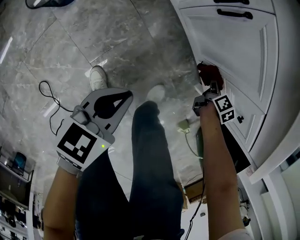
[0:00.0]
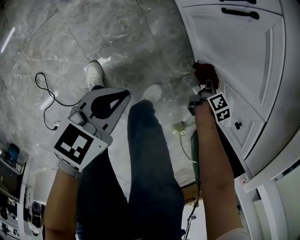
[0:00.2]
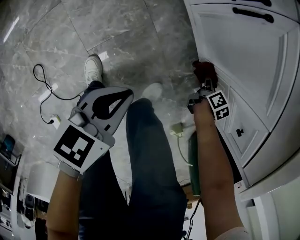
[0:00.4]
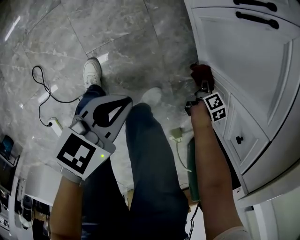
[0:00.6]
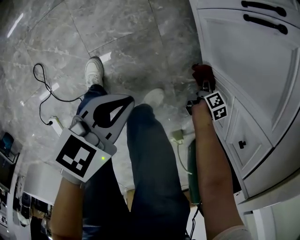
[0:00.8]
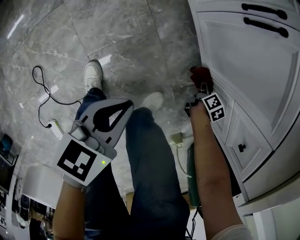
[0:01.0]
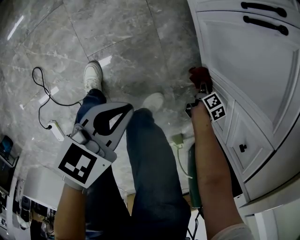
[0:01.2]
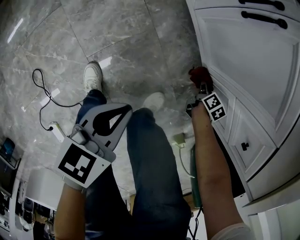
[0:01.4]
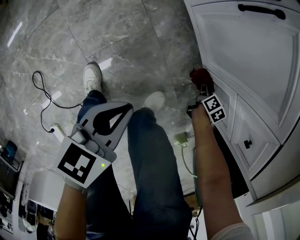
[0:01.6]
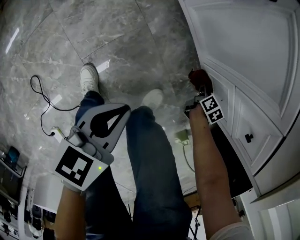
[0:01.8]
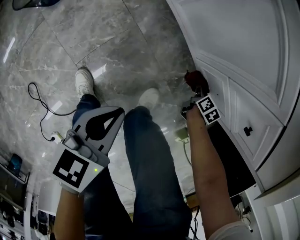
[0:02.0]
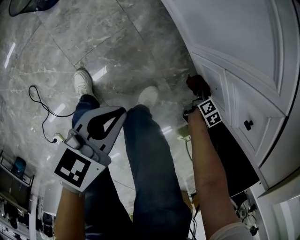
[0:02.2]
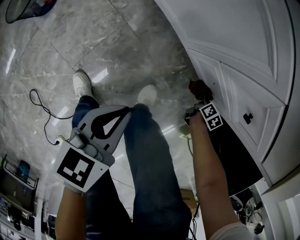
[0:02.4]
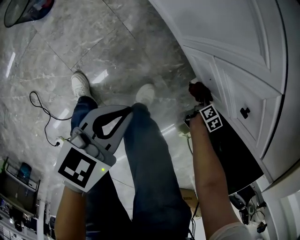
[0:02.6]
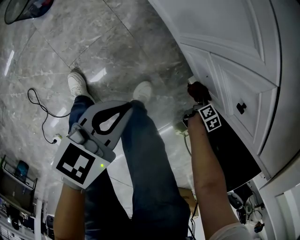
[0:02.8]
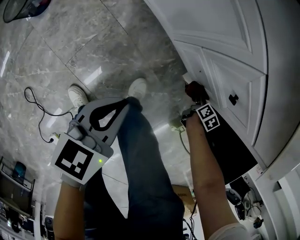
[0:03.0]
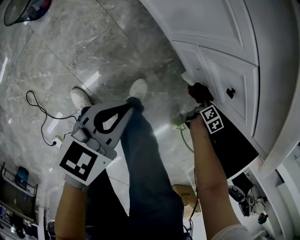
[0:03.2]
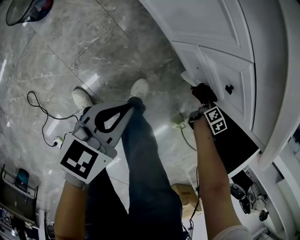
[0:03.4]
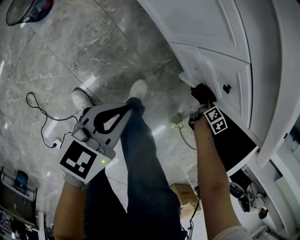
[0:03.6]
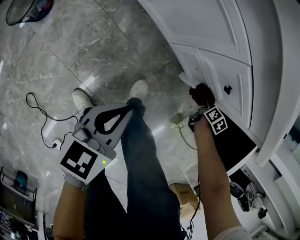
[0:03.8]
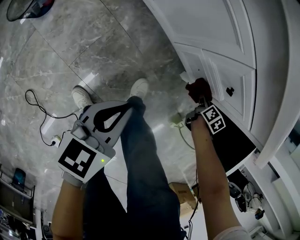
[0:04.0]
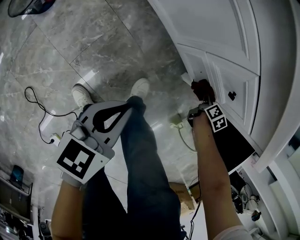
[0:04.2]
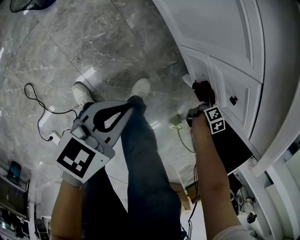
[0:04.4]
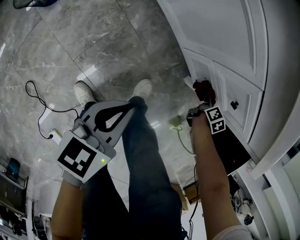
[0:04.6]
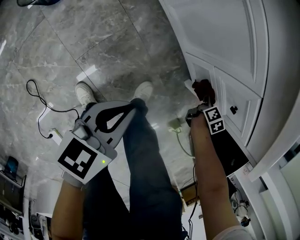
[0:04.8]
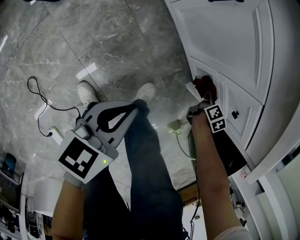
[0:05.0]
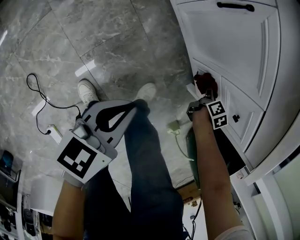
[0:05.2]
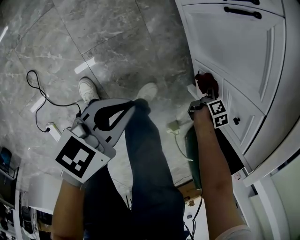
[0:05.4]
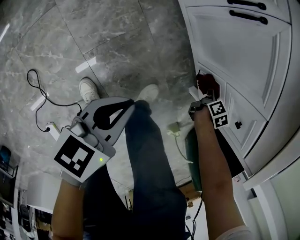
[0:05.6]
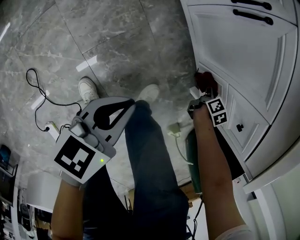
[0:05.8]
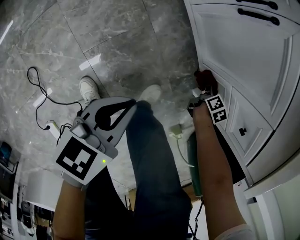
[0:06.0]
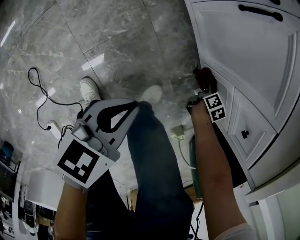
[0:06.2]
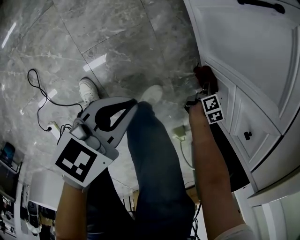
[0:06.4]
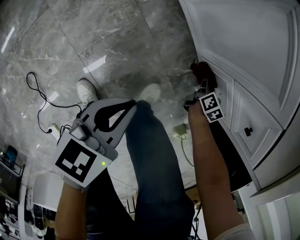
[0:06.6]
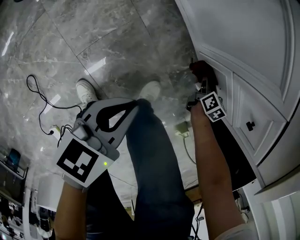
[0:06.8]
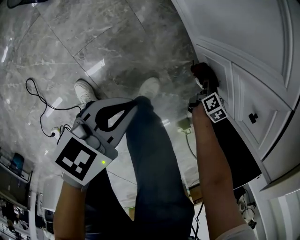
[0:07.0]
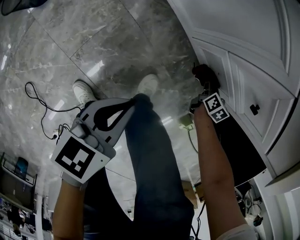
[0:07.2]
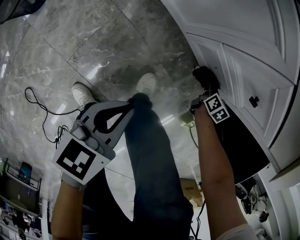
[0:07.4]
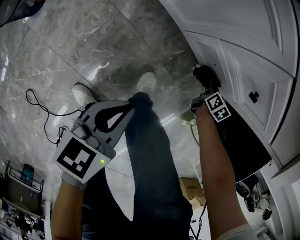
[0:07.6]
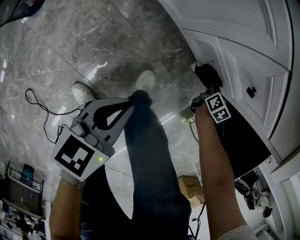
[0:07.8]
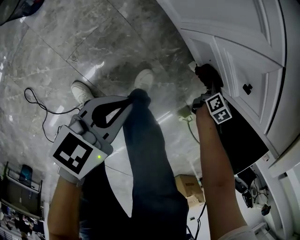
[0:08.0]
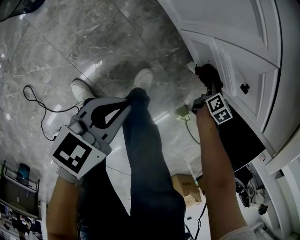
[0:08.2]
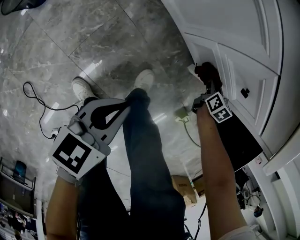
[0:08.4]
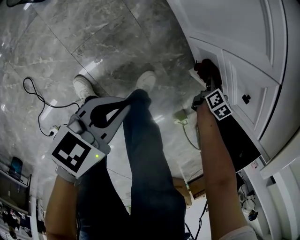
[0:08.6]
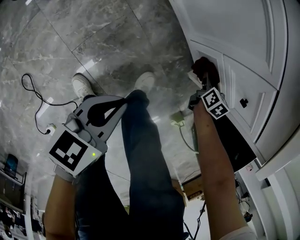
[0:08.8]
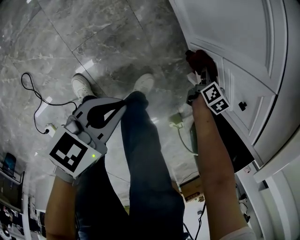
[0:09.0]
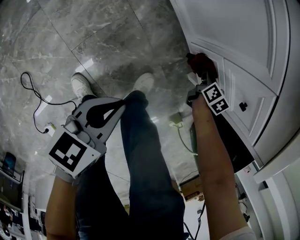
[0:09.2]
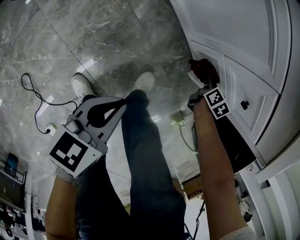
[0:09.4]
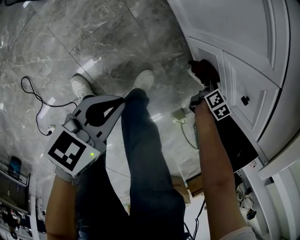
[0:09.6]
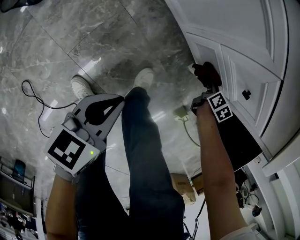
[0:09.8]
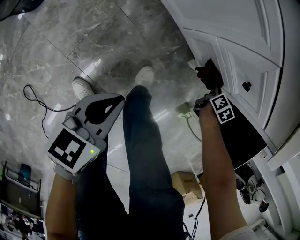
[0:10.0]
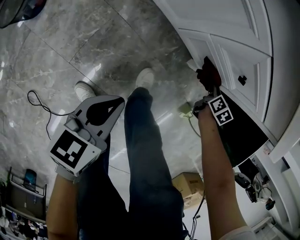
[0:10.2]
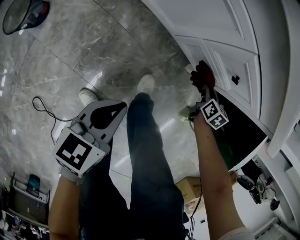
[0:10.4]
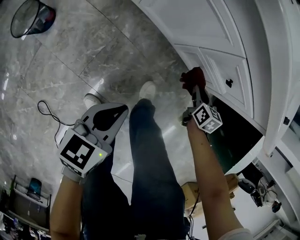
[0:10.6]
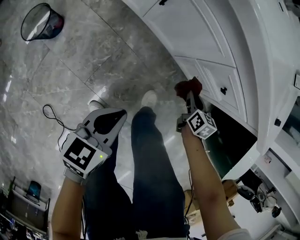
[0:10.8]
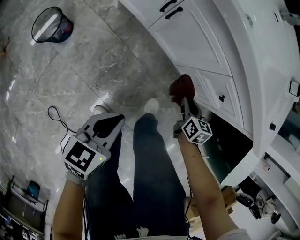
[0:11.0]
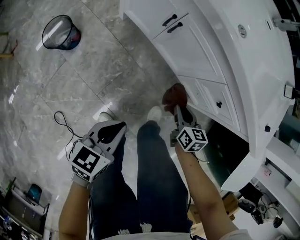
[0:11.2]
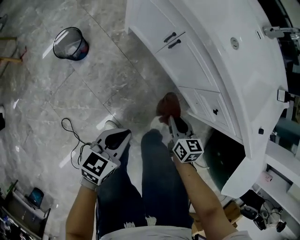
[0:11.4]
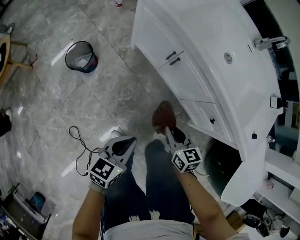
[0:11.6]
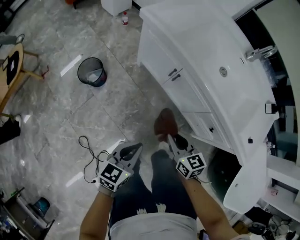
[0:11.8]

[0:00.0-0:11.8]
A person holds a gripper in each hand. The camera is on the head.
0:00.0 to 0:01.4: The right gripper shifts some 15 cm downward. Meanwhile the left gripper travels downward and to the right by roughly 10 cm.
0:01.4 to 0:03.0: The left gripper shifts roughly 10 cm to the right, while the right gripper moves to the right, approximately 25 cm.
0:03.0 to 0:04.4: The left gripper ends up approximately 5 cm from where it was; the right gripper shifts about 10 cm upward and to the left.
0:04.4 to 0:06.0: The right gripper goes some 20 cm to the left and downward. The left gripper shifts approximately 5 cm to the left.
0:06.0 to 0:07.4: Both grippers travel together to the right, approximately 15 cm.
0:07.4 to 0:08.8: The left gripper shifts by roughly 5 cm. Meanwhile the right gripper travels to the left and upward by about 15 cm.
0:08.8 to 0:10.4: The right gripper moves left and right over some 20 cm, changing direction 2 times.
0:10.4 to 0:11.8: The right gripper shifts by some 50 cm, and rotates approximately 50 degrees; the left gripper goes approximately 25 cm upward, and turns by roughly 20 degrees.

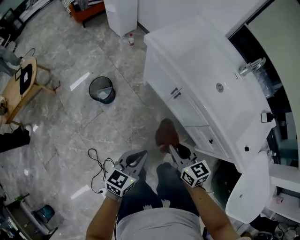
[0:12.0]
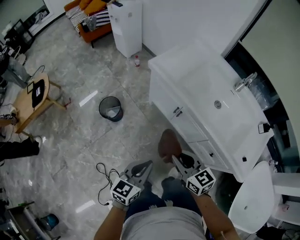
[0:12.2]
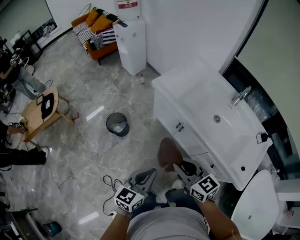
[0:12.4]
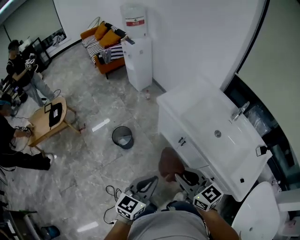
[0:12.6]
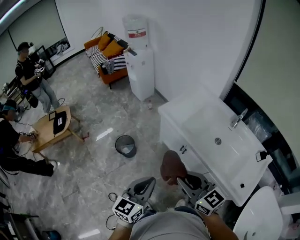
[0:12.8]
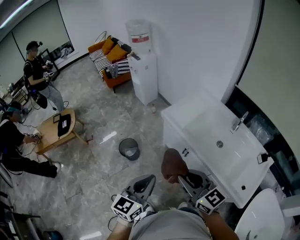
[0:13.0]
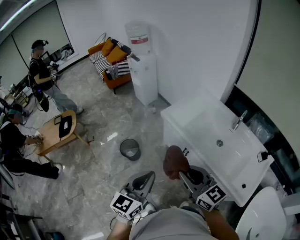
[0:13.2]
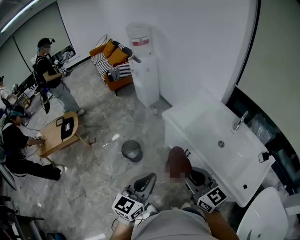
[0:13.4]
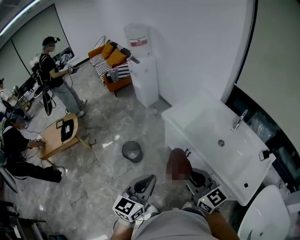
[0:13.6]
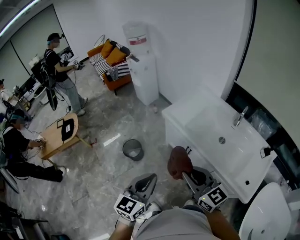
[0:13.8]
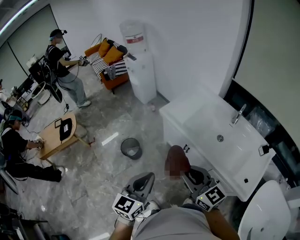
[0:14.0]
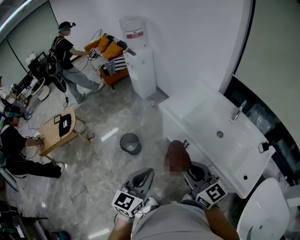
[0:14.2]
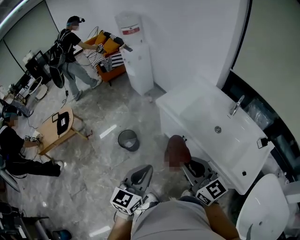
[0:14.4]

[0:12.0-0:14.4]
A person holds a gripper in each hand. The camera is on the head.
0:12.0 to 0:13.2: The grippers both shift upward by some 30 cm. The left gripper swivels roughly 30 degrees. Meanwhile the right gripper turns by roughly 30 degrees.
0:13.2 to 0:14.4: There are only small adjustments of the grippers.

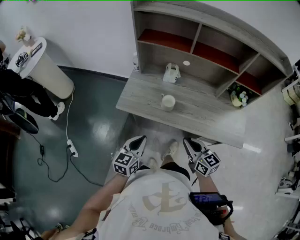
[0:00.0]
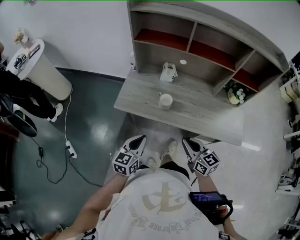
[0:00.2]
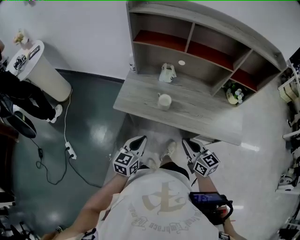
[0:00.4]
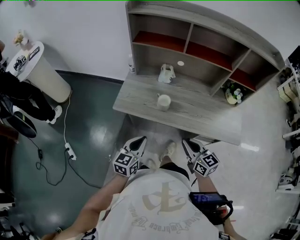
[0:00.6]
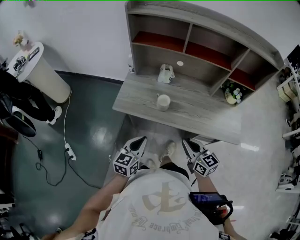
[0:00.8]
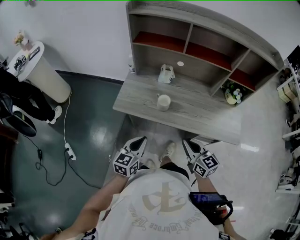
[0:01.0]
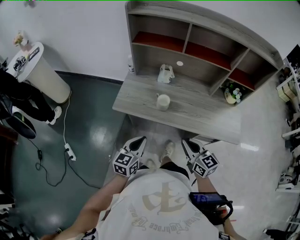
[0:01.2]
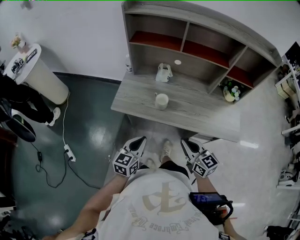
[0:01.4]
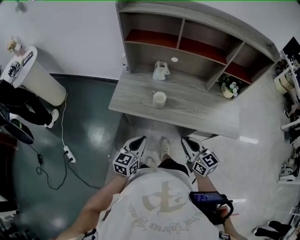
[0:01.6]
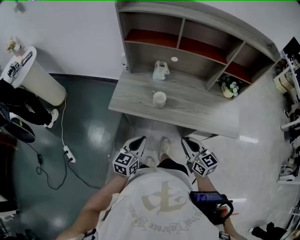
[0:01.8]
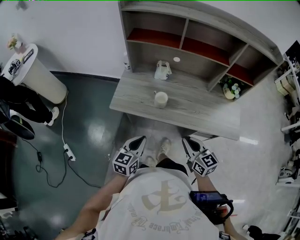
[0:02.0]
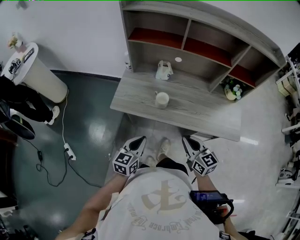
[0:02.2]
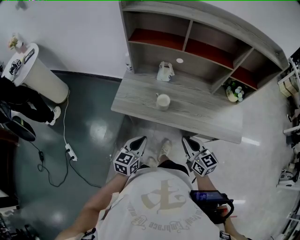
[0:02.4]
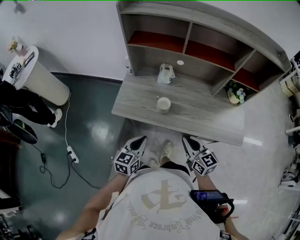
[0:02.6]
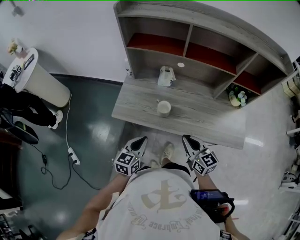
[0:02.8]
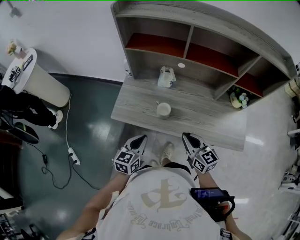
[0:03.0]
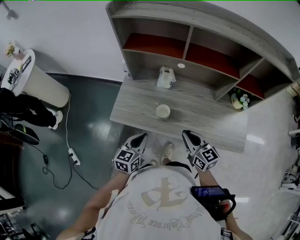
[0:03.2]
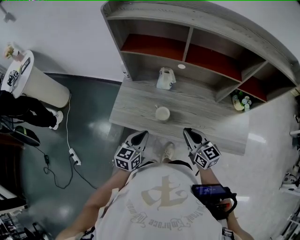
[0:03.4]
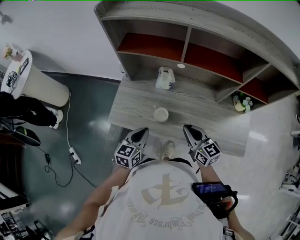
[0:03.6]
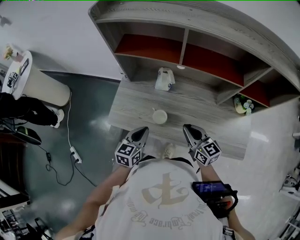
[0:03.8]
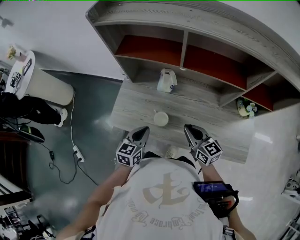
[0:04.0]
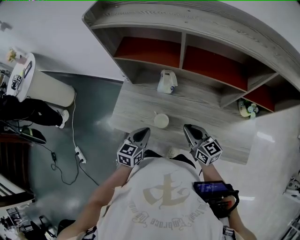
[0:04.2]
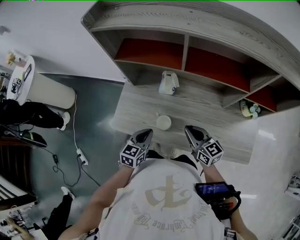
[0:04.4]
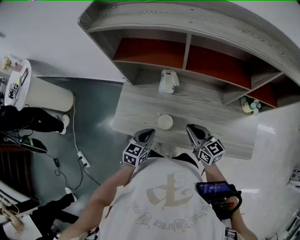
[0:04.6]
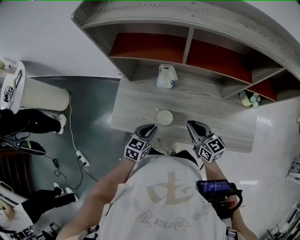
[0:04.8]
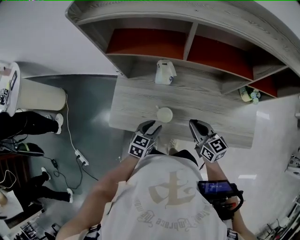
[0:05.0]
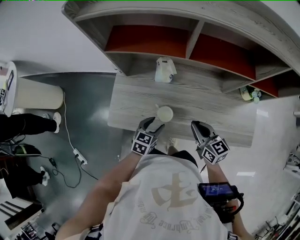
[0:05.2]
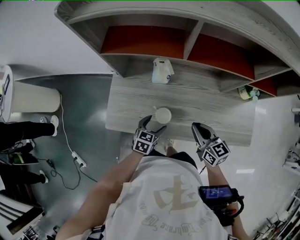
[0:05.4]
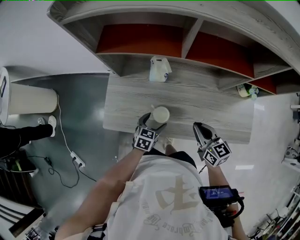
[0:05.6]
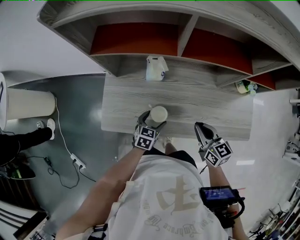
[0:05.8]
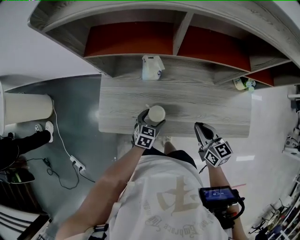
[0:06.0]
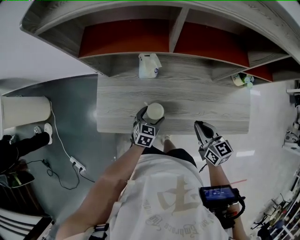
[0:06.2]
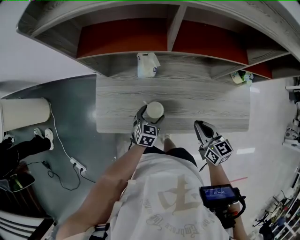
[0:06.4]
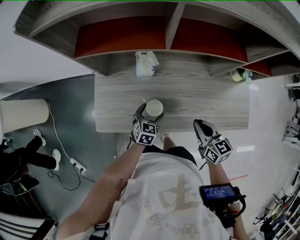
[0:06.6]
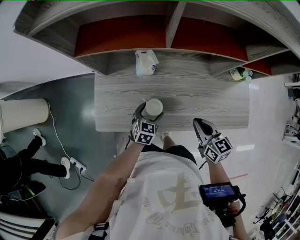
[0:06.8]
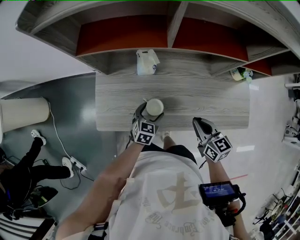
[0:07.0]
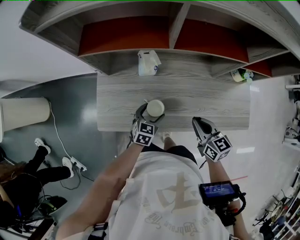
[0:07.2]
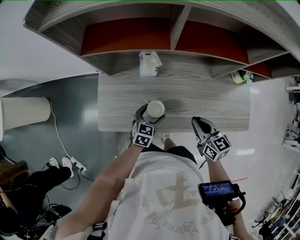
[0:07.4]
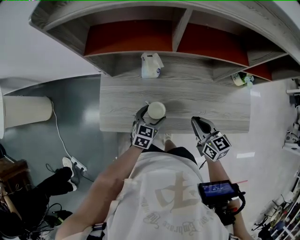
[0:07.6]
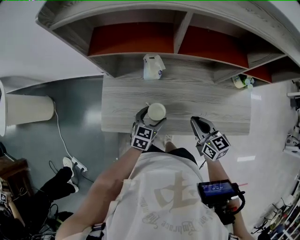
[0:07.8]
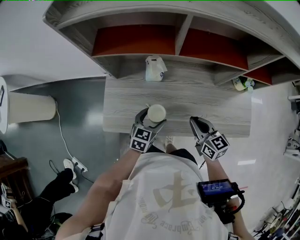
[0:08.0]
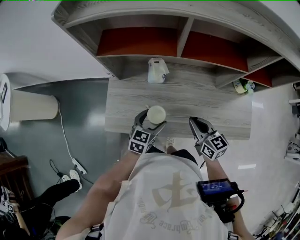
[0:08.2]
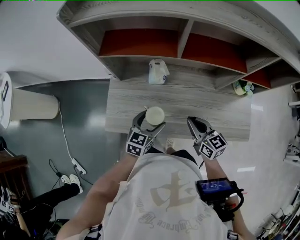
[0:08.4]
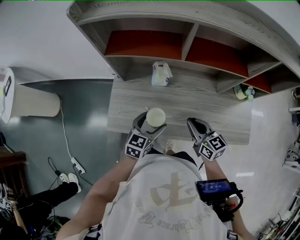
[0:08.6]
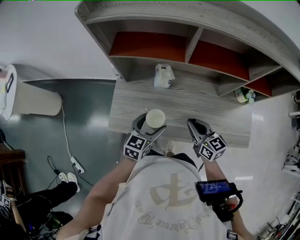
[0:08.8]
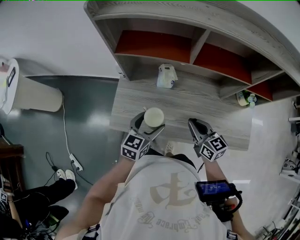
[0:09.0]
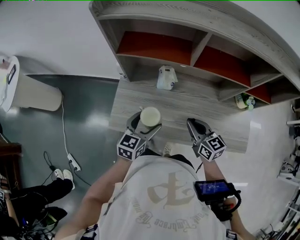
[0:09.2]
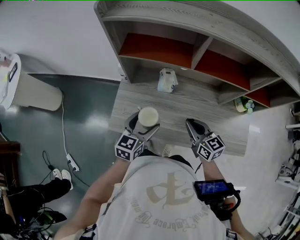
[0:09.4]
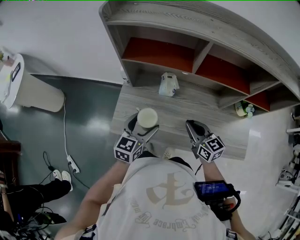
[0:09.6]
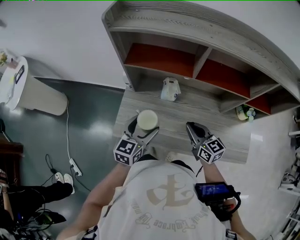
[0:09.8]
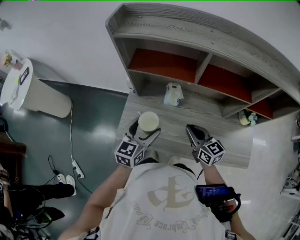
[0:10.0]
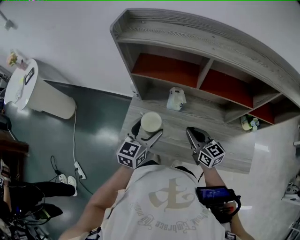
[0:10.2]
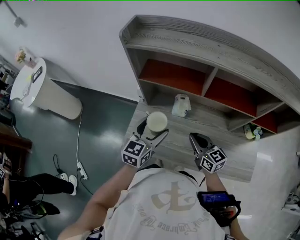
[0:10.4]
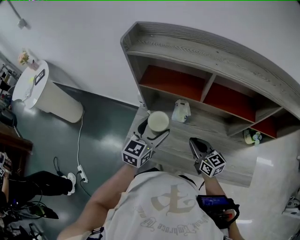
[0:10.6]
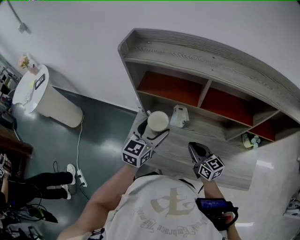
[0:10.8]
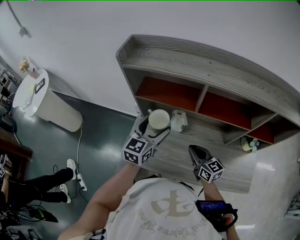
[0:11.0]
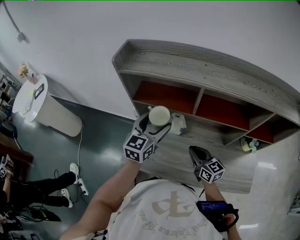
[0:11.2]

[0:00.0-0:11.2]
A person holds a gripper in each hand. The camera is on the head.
0:00.0 to 0:01.6: There are only small adjustments of the grippers.
0:01.6 to 0:03.2: The grippers both shift forward by roughly 15 cm.
0:03.2 to 0:04.8: The right gripper goes some 10 cm forward. Meanwhile the left gripper heads forward and downward, covering roughly 15 cm.
0:04.8 to 0:06.4: The right gripper travels to the right by approximately 5 cm. The left gripper goes about 15 cm downward, forward and to the right, and opens up.
0:06.4 to 0:08.0: The left gripper heads upward, covering approximately 10 cm.
0:08.0 to 0:09.6: The right gripper shifts approximately 10 cm to the left and upward. Meanwhile the left gripper moves upward and to the left, approximately 15 cm.
0:09.6 to 0:11.2: The left gripper goes approximately 20 cm upward and forward. The right gripper shifts by approximately 5 cm.
